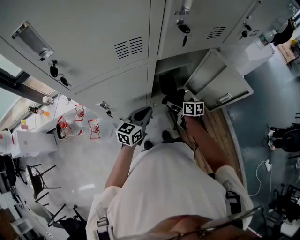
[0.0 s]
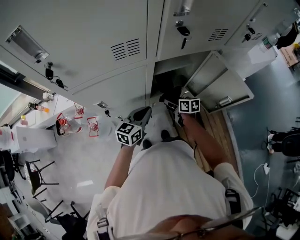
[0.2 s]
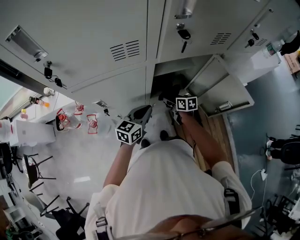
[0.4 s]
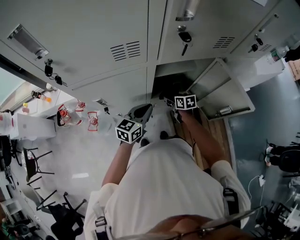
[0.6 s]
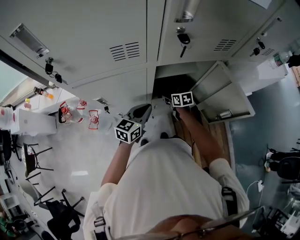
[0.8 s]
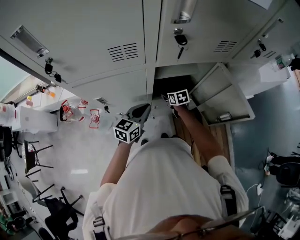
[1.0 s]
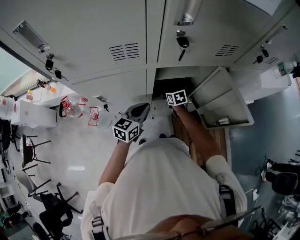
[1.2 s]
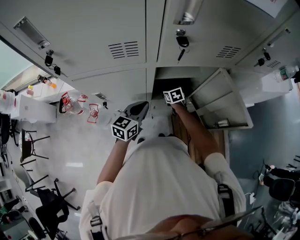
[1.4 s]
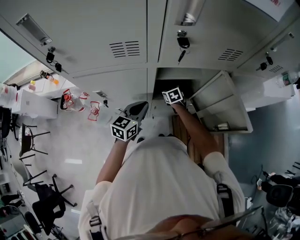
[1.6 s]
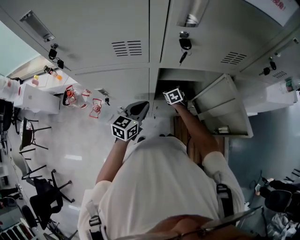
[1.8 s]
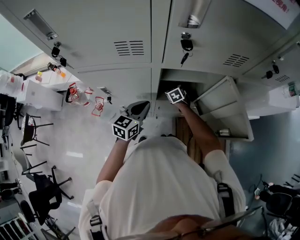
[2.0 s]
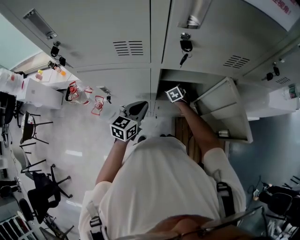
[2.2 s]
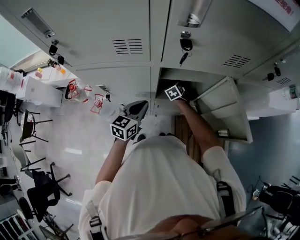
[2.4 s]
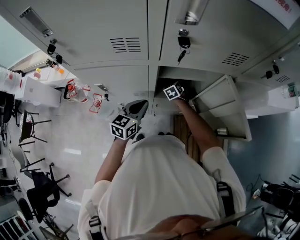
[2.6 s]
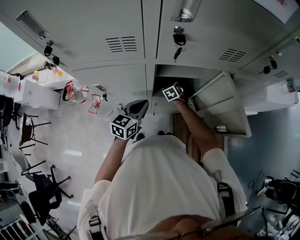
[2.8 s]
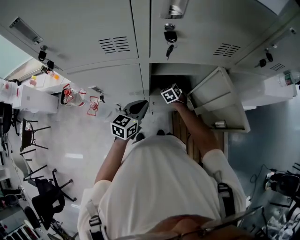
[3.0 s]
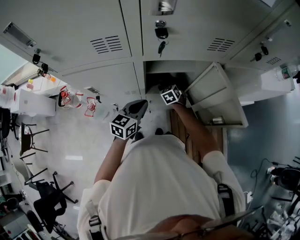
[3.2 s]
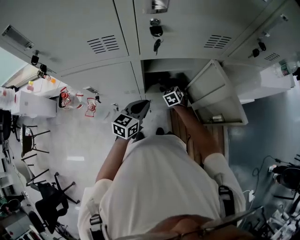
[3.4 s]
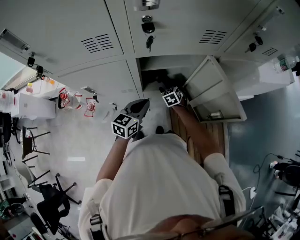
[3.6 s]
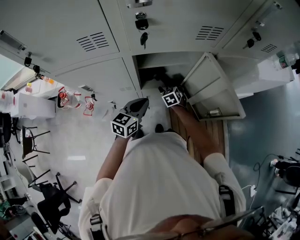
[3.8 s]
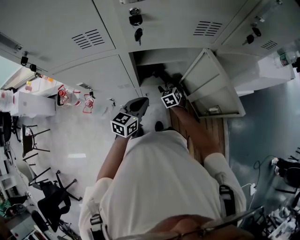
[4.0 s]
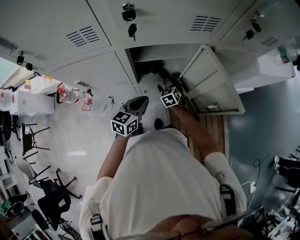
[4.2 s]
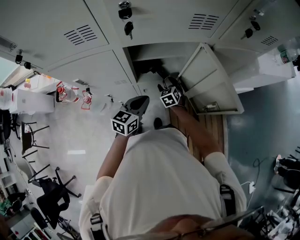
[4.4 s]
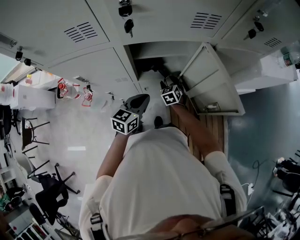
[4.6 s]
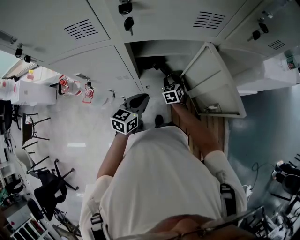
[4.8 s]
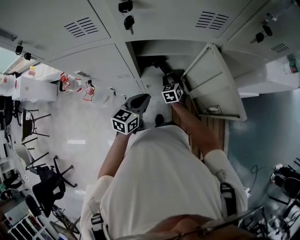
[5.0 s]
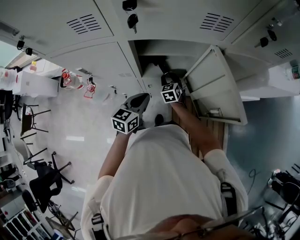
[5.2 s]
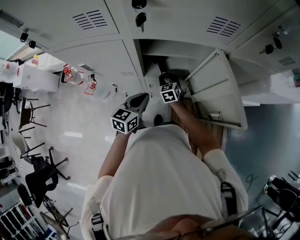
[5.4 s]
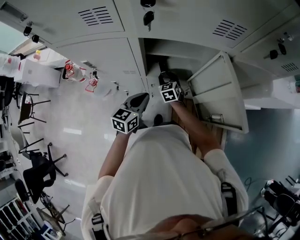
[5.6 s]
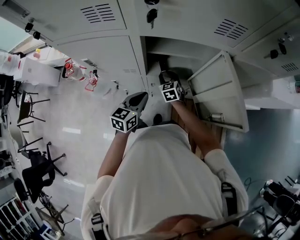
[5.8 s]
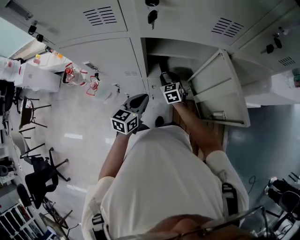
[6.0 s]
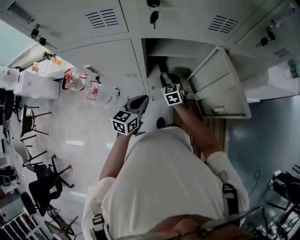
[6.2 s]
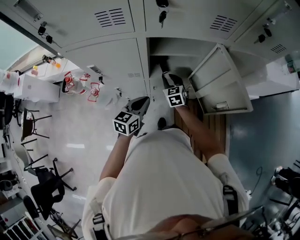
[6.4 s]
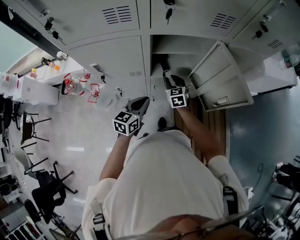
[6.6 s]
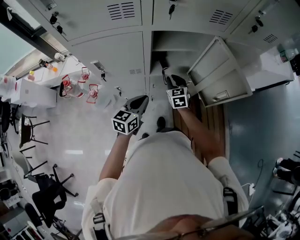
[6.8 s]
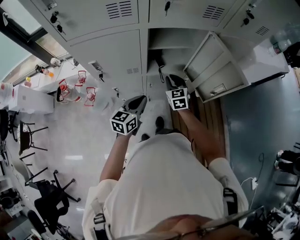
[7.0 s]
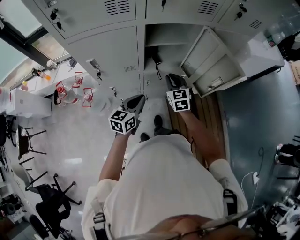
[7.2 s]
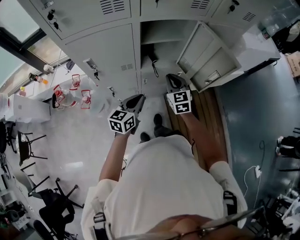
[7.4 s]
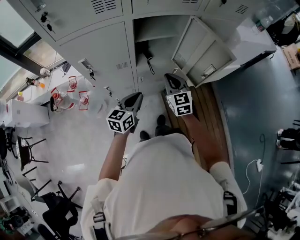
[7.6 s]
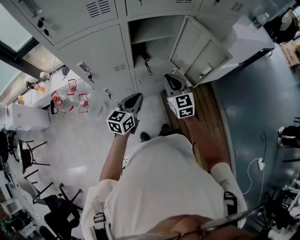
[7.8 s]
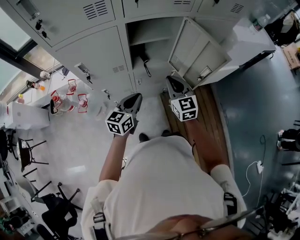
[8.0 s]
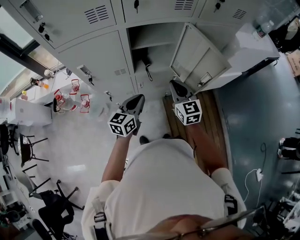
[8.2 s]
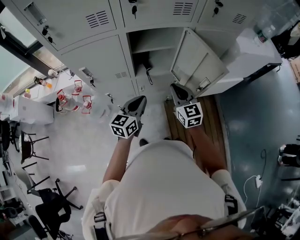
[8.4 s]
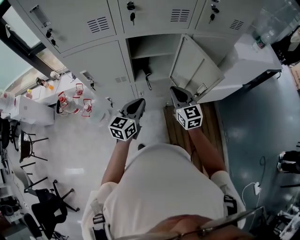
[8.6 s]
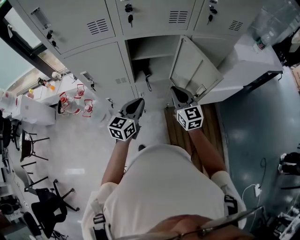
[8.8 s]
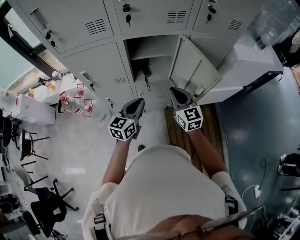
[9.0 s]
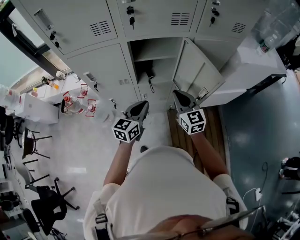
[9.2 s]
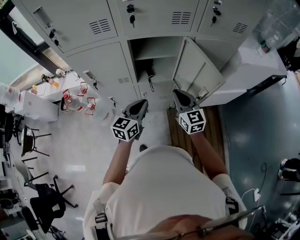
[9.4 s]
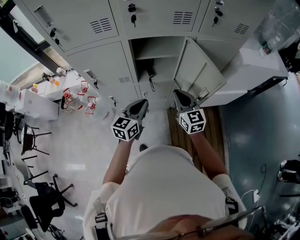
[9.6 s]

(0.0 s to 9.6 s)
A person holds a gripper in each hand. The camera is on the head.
0.0 s - 1.6 s: The right gripper heads forward and downward, covering approximately 15 cm, and rotates around the line of its fingers by about 40 degrees, counterclockwise from behind.
1.6 s - 3.2 s: The right gripper opens its fingers.
3.2 s - 4.8 s: Both grippers move to the right, approximately 5 cm. The right gripper closes up.
4.8 s - 6.4 s: The left gripper ends up some 5 cm from where it was. The right gripper heads to the left and upward, covering roughly 10 cm.
6.4 s - 8.0 s: The left gripper is displaced backward by roughly 5 cm. The right gripper moves upward, backward and to the right, roughly 25 cm, and turns by approximately 20 degrees.
8.0 s - 9.6 s: The grippers both shift to the right by roughly 5 cm.

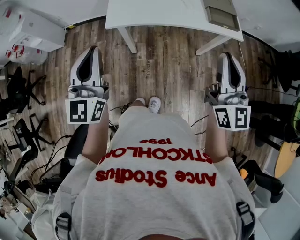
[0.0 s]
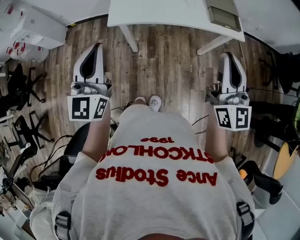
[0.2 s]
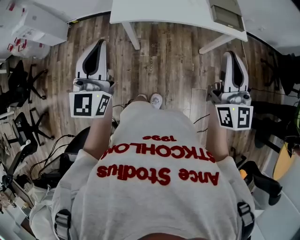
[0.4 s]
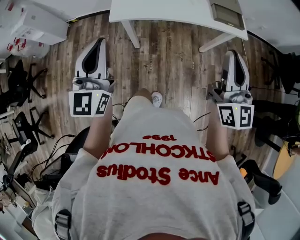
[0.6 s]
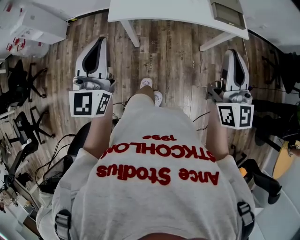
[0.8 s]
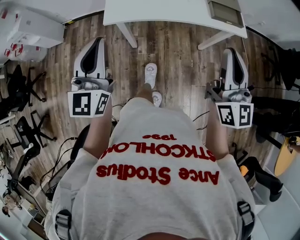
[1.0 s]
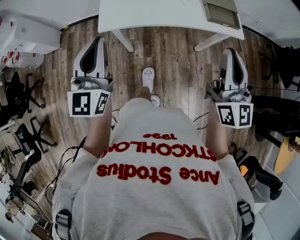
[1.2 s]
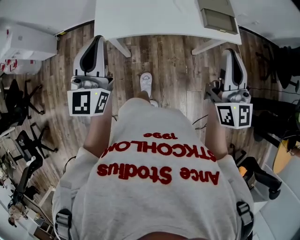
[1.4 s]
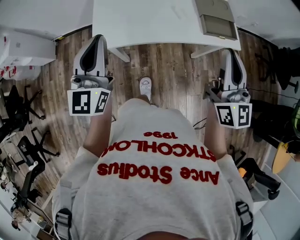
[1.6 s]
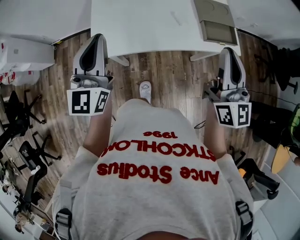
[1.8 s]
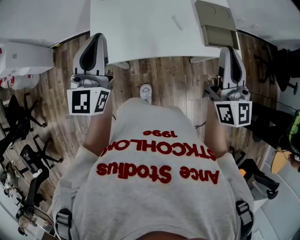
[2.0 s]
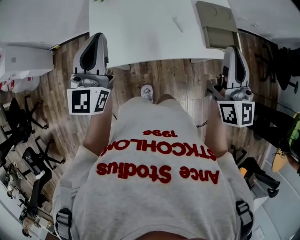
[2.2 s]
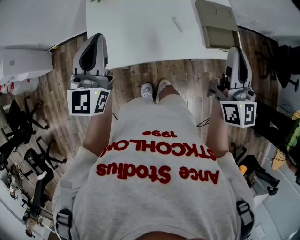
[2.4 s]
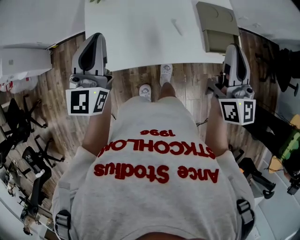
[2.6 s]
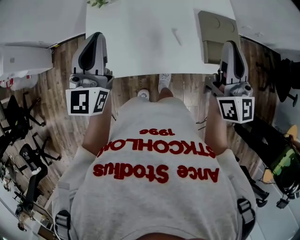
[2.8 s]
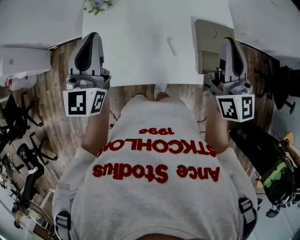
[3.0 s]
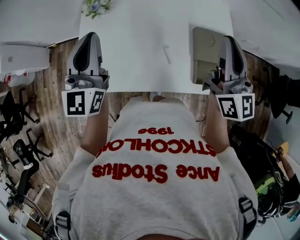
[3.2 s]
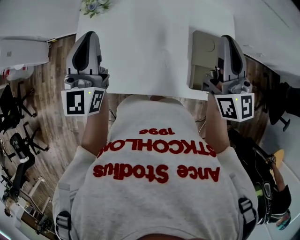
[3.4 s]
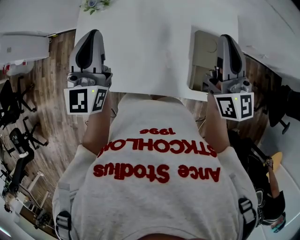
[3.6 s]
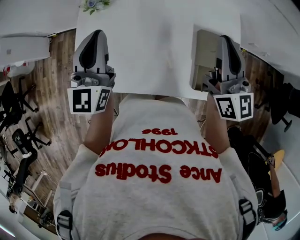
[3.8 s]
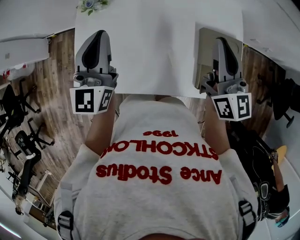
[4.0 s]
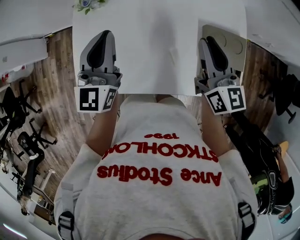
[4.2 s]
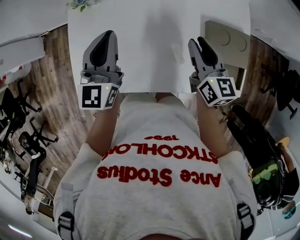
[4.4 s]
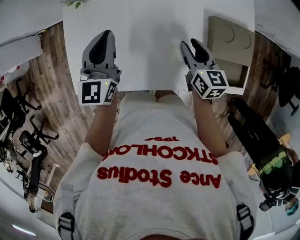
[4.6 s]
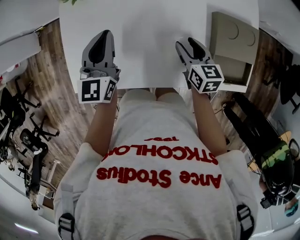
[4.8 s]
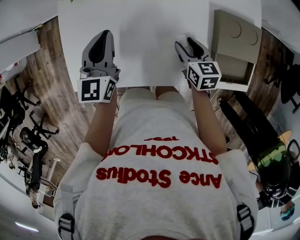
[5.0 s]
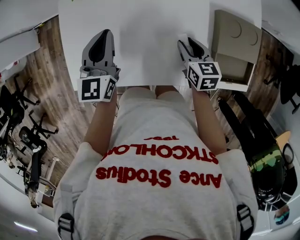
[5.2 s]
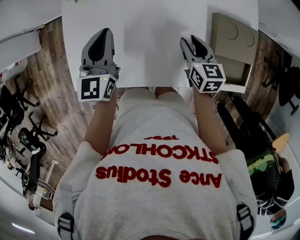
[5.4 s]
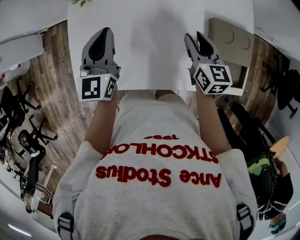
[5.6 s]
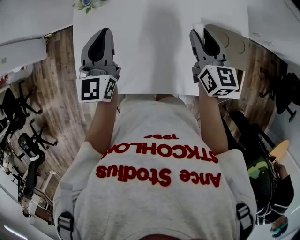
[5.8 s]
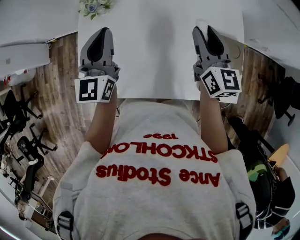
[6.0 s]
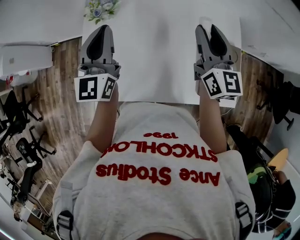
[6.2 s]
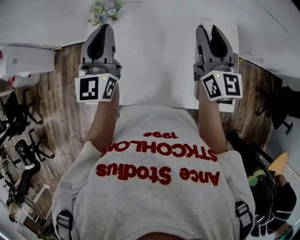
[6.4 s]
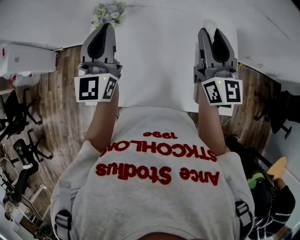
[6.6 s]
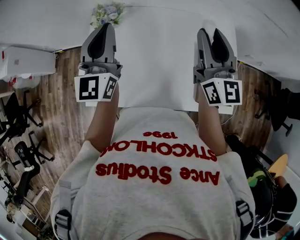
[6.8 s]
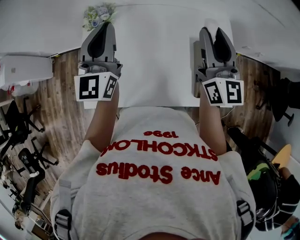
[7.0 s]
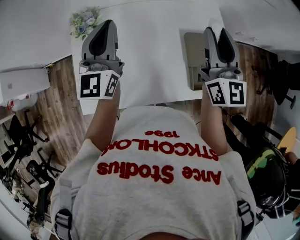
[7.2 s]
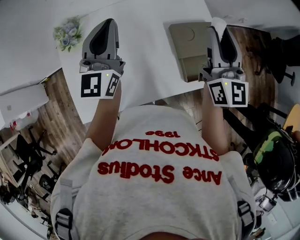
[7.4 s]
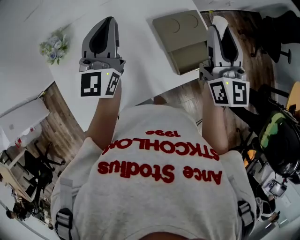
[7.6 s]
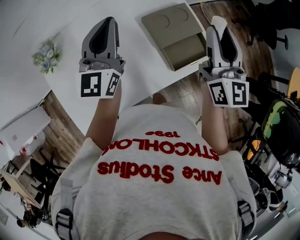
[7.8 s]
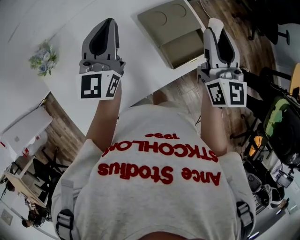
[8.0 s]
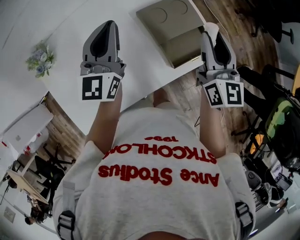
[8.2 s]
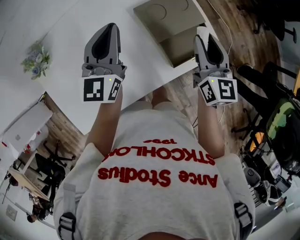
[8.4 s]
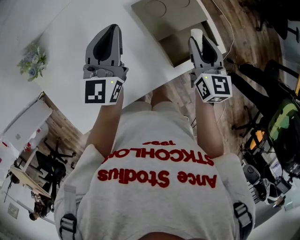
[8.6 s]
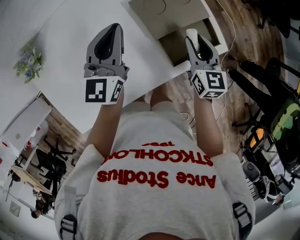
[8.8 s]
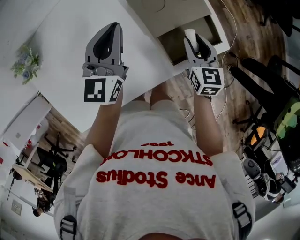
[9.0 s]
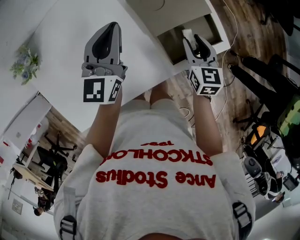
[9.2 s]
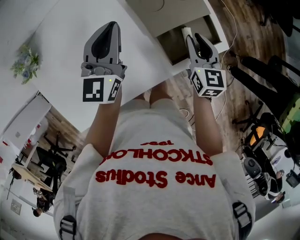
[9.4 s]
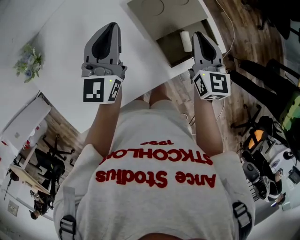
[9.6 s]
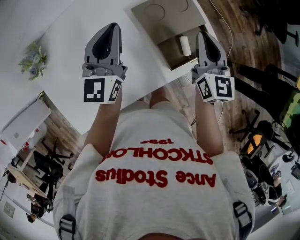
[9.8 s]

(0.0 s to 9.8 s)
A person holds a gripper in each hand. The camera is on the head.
0.0 s - 1.4 s: The two grippers go roughly 10 cm forward.
1.4 s - 2.8 s: Both grippers travel together forward, roughly 20 cm.
2.8 s - 4.2 s: The right gripper is displaced forward and downward by approximately 15 cm, and rotates about 20 degrees. The left gripper heads forward, to the right and downward, covering about 15 cm.
4.2 s - 5.6 s: The right gripper moves downward, about 15 cm. The left gripper heads downward, covering some 5 cm.
5.6 s - 7.0 s: The right gripper is displaced upward by about 25 cm, and tilts its fingers about 40 degrees upward; the left gripper travels upward by approximately 15 cm.
7.0 s - 8.4 s: The left gripper moves about 25 cm, and changes its angle by roughly 30 degrees; the right gripper ends up roughly 30 cm from where it was, and changes its angle by roughly 40 degrees.
8.4 s - 9.8 s: The right gripper moves roughly 15 cm downward and comes back, and closes.

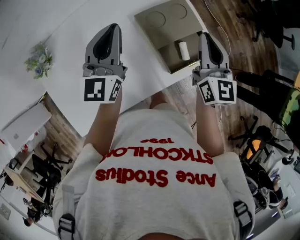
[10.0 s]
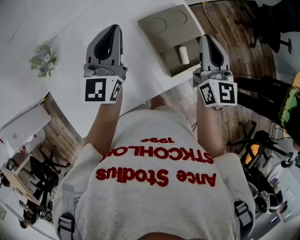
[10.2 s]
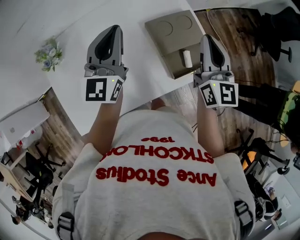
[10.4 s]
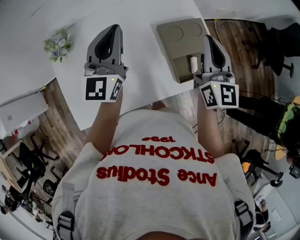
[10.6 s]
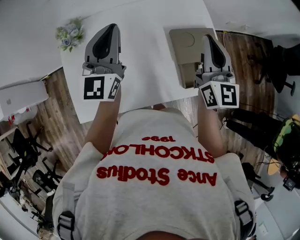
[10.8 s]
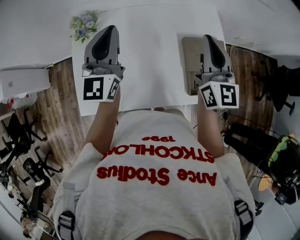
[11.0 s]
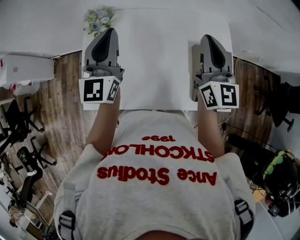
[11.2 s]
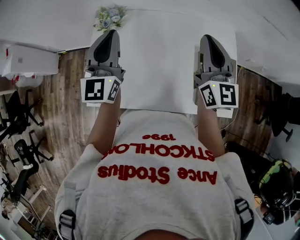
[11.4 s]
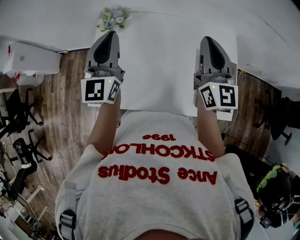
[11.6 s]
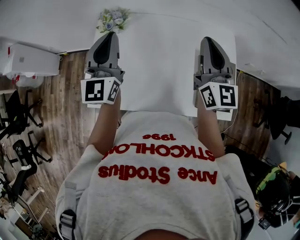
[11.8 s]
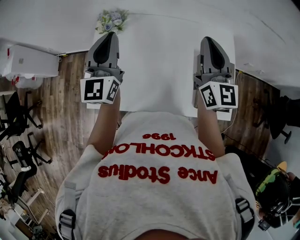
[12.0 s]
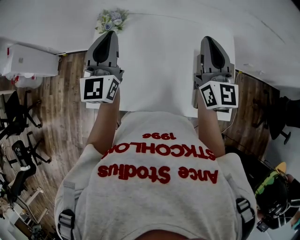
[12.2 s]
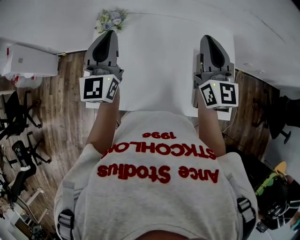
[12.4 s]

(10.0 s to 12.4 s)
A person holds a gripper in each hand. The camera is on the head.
10.0 s - 11.2 s: The left gripper shifts by approximately 25 cm, and turns by roughly 30 degrees. Meanwhile the right gripper changes place by some 25 cm, and turns by approximately 30 degrees.
11.2 s - 12.4 s: The grippers move only a little.

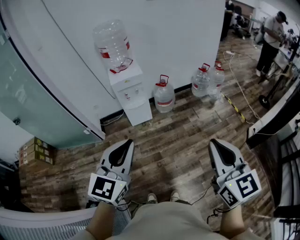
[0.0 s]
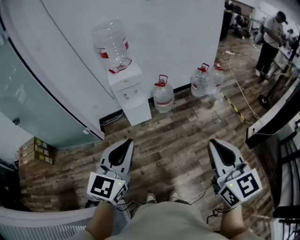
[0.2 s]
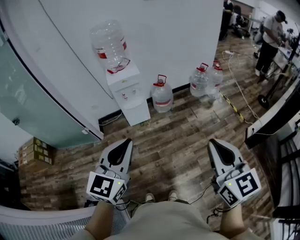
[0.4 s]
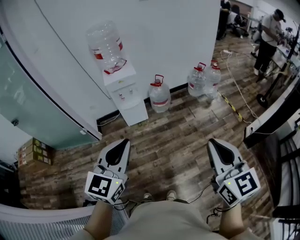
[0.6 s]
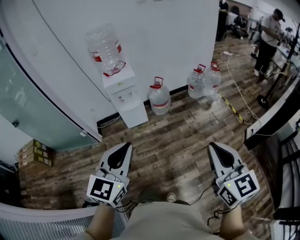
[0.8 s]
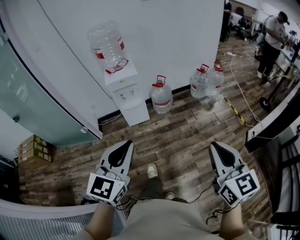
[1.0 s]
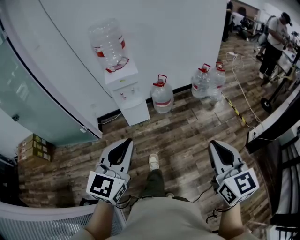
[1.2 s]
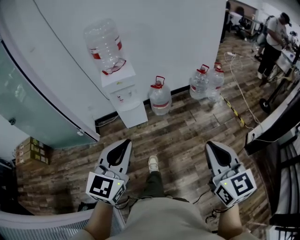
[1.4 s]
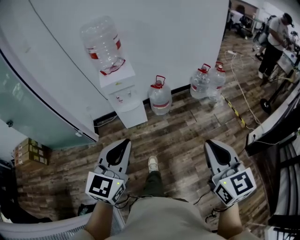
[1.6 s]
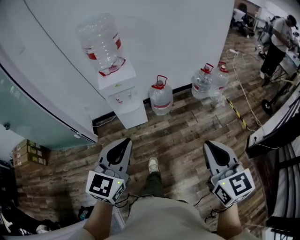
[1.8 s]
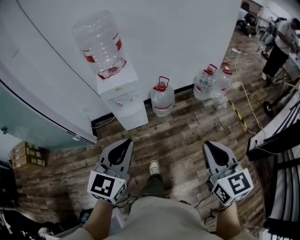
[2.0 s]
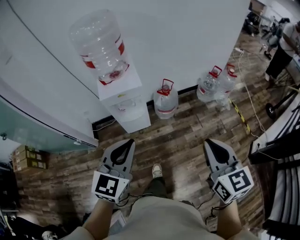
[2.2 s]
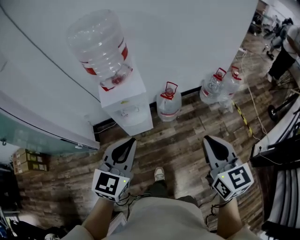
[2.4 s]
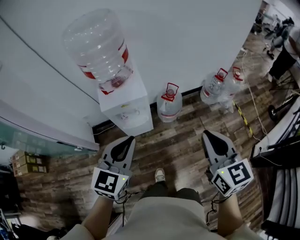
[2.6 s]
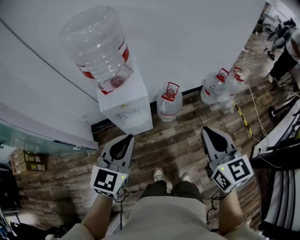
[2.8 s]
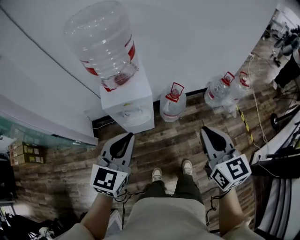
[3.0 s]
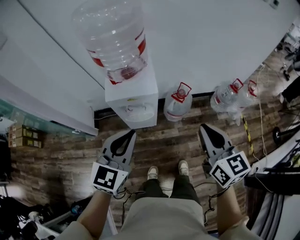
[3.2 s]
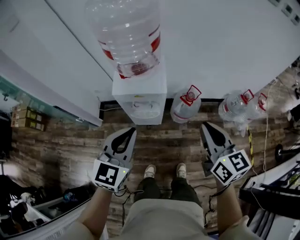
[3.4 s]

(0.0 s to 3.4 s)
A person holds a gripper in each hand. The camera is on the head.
0.0 s - 1.6 s: The right gripper shifts approximately 15 cm forward and downward. The left gripper goes about 10 cm forward.
1.6 s - 3.4 s: The pair of grippers is taken forward, approximately 50 cm. The right gripper changes its angle by approximately 20 degrees.
